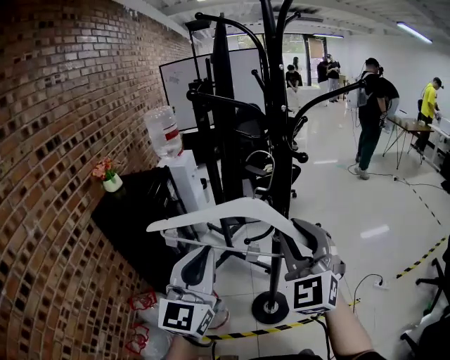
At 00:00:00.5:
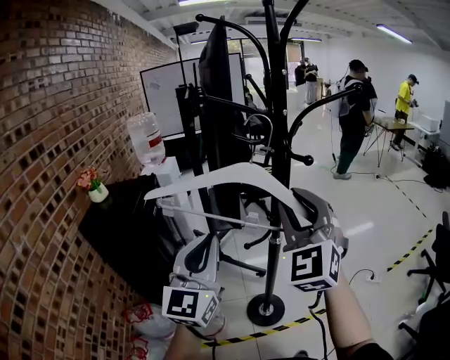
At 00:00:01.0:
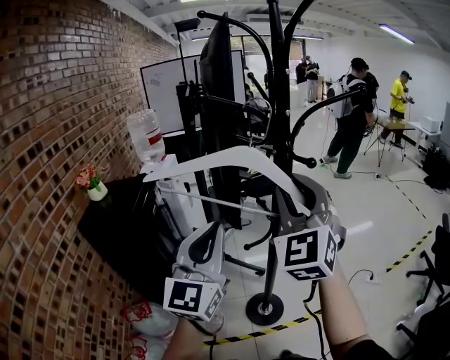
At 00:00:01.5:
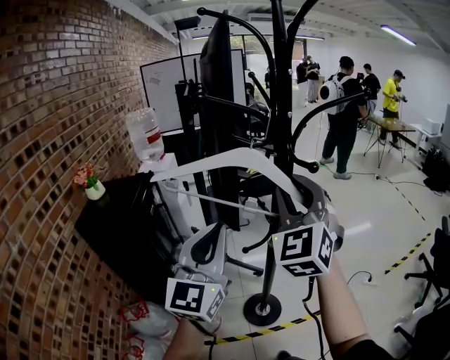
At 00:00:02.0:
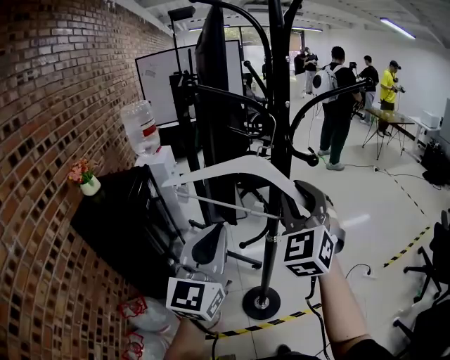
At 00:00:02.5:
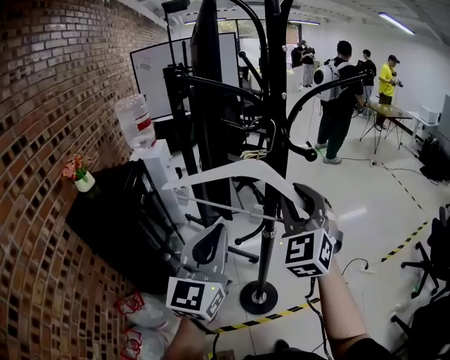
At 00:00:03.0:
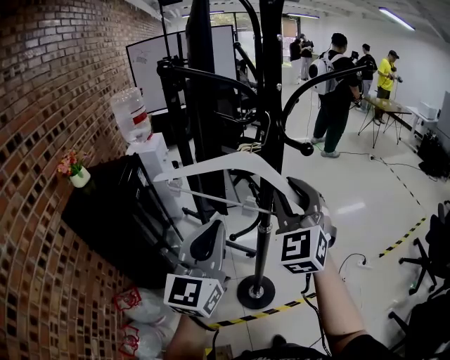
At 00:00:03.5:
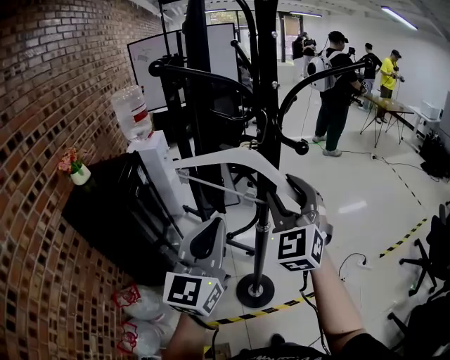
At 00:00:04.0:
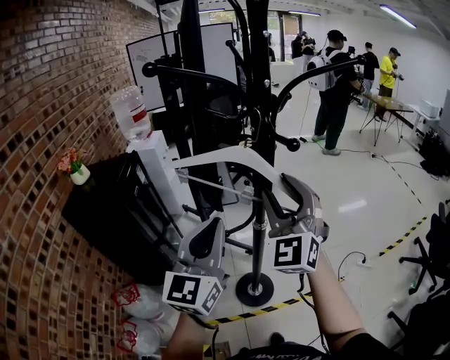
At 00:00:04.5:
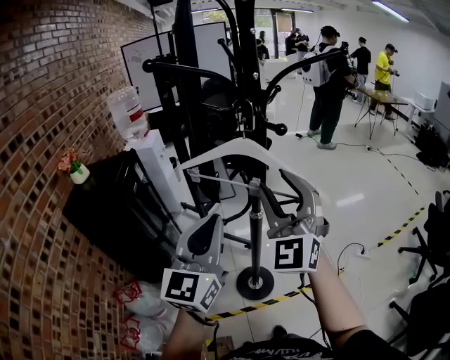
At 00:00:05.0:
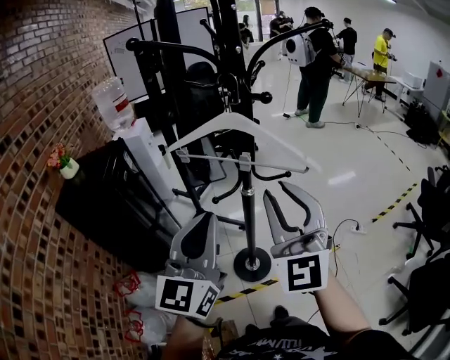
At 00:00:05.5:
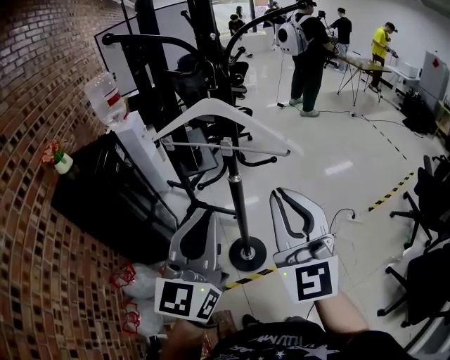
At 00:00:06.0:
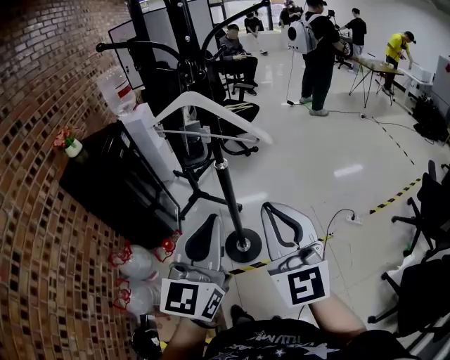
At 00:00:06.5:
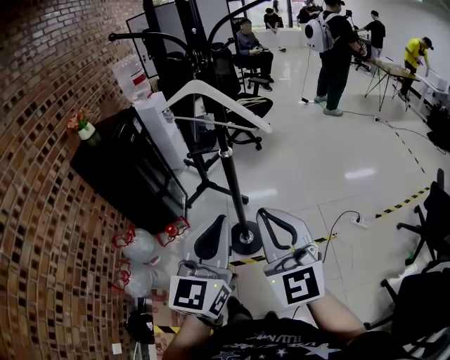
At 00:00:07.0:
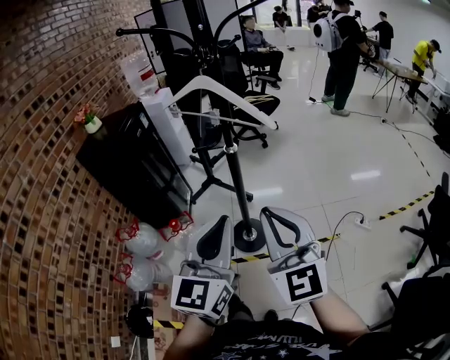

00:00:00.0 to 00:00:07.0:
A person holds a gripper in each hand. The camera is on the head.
00:00:00.0 to 00:00:02.0: The two grippers go approximately 10 cm forward.
00:00:02.0 to 00:00:03.5: The right gripper opens up.
00:00:03.5 to 00:00:05.0: The left gripper heads backward, covering some 10 cm. The right gripper heads backward, covering about 15 cm, and closes its fingers.
00:00:05.0 to 00:00:07.0: The two grippers go roughly 20 cm backward, to the right and downward. The right gripper swivels approximately 30 degrees, and closes.

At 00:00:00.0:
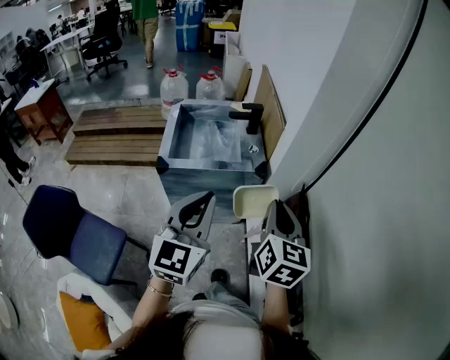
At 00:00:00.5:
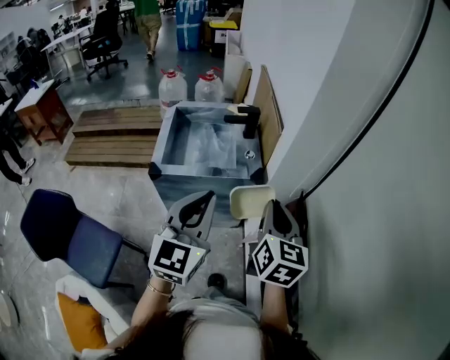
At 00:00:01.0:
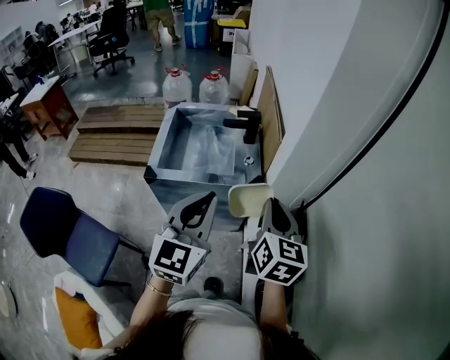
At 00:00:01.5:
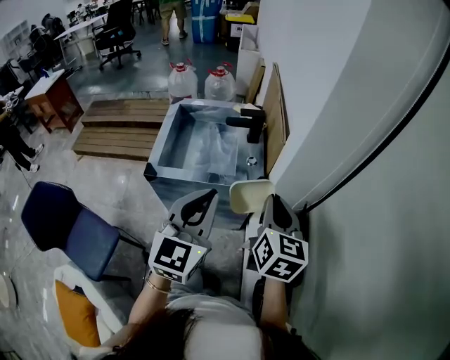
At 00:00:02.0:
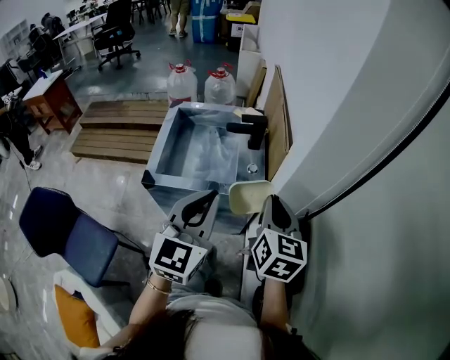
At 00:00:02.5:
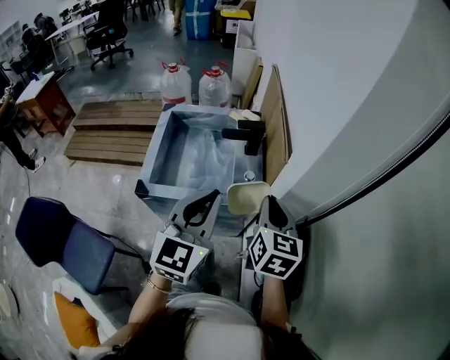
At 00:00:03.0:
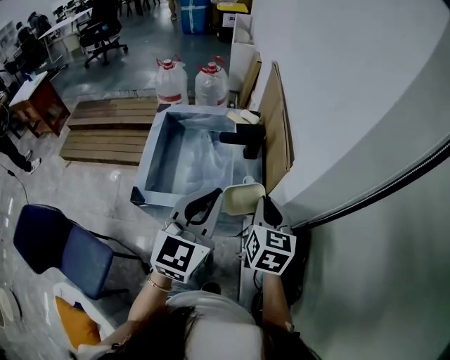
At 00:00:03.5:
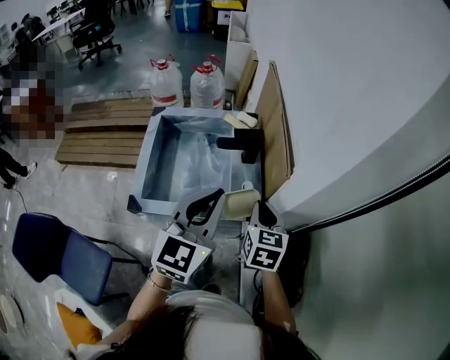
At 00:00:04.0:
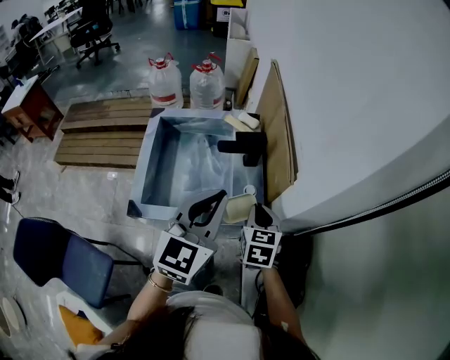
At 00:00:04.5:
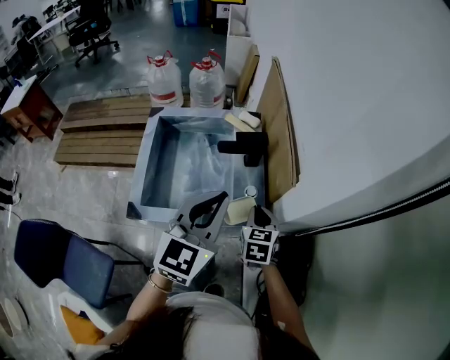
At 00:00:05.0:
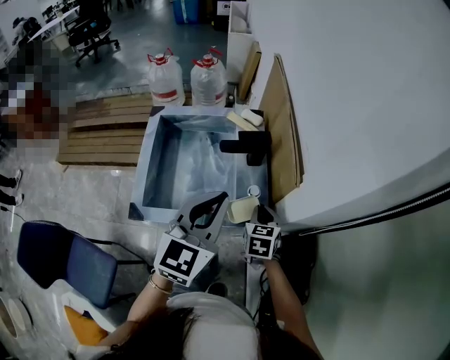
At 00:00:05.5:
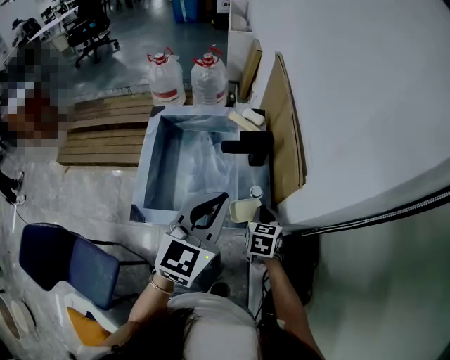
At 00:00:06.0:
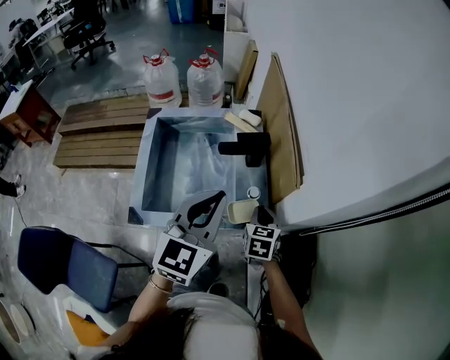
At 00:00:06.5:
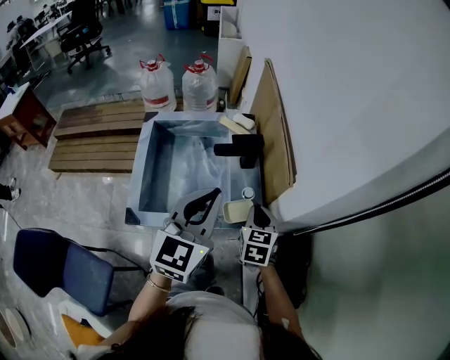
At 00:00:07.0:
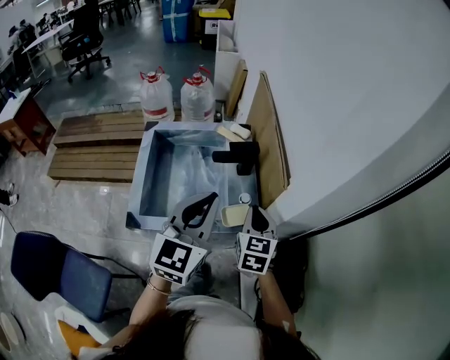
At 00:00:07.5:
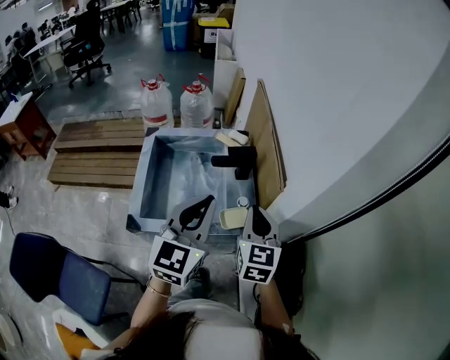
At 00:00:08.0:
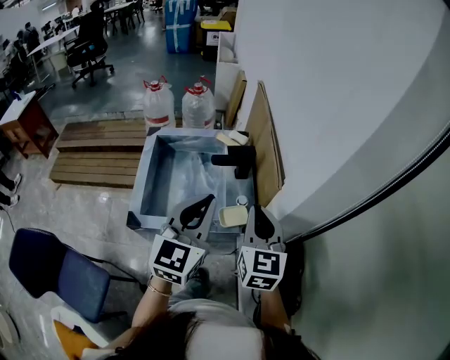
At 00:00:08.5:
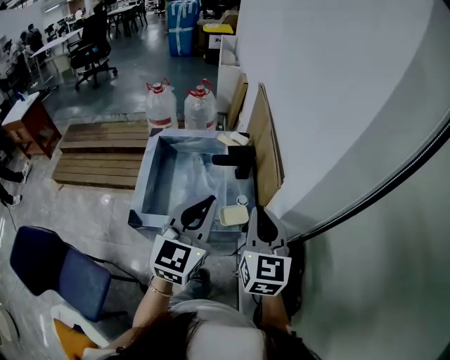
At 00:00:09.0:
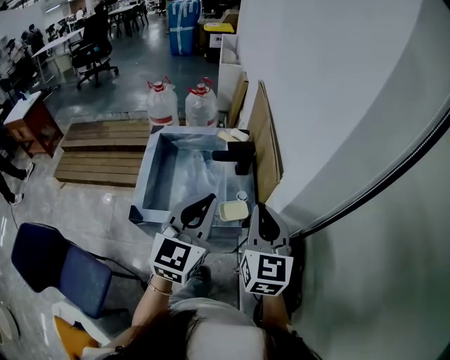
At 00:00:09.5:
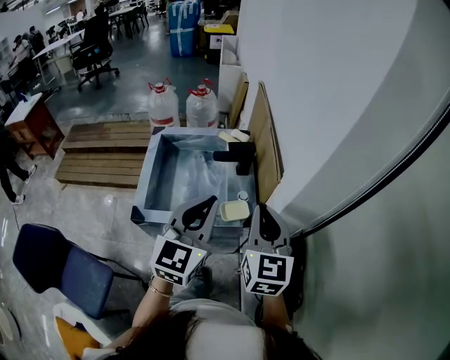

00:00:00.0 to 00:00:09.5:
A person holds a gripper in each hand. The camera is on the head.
00:00:00.0 to 00:00:02.0: The two grippers go approximately 20 cm forward.
00:00:02.0 to 00:00:04.0: The right gripper travels forward and downward by approximately 20 cm, and turns by about 20 degrees. The left gripper goes roughly 15 cm forward.
00:00:04.0 to 00:00:05.5: The right gripper goes approximately 10 cm downward.
00:00:05.5 to 00:00:07.5: The right gripper shifts about 20 cm upward, and swivels approximately 30 degrees; the left gripper ends up approximately 5 cm from where it was.
00:00:07.5 to 00:00:09.5: The left gripper ends up roughly 5 cm from where it was. Meanwhile the right gripper shifts some 10 cm upward and backward.

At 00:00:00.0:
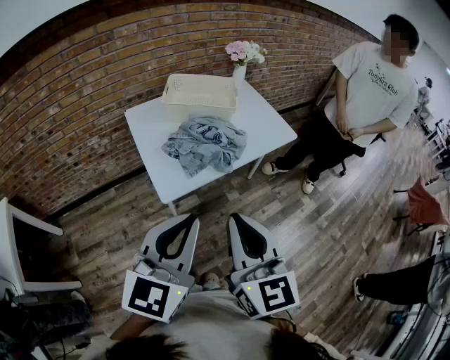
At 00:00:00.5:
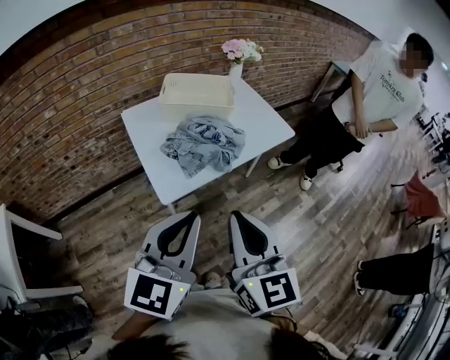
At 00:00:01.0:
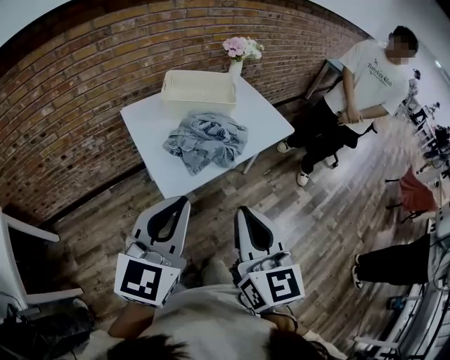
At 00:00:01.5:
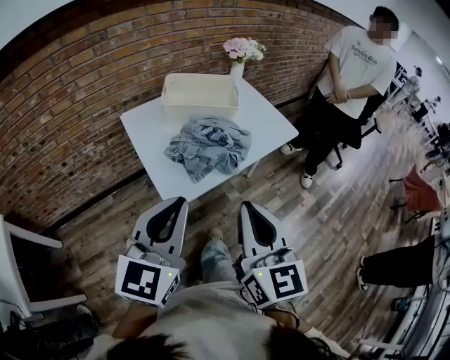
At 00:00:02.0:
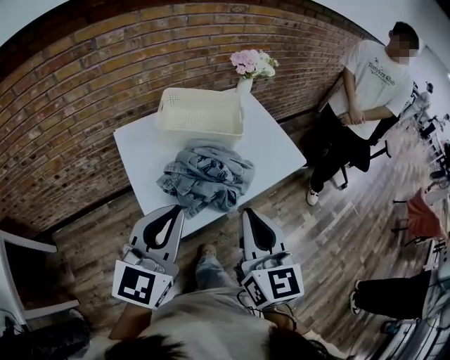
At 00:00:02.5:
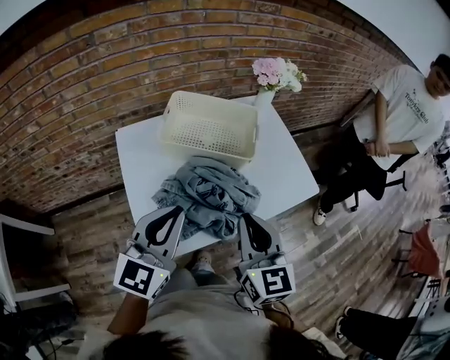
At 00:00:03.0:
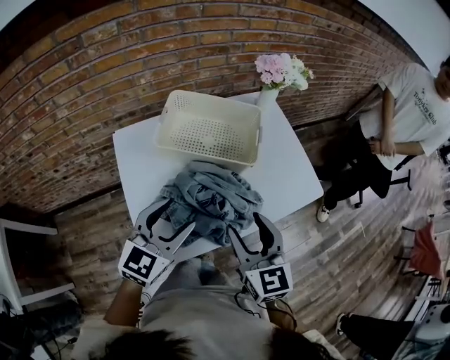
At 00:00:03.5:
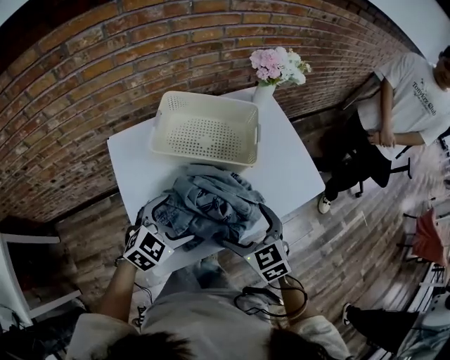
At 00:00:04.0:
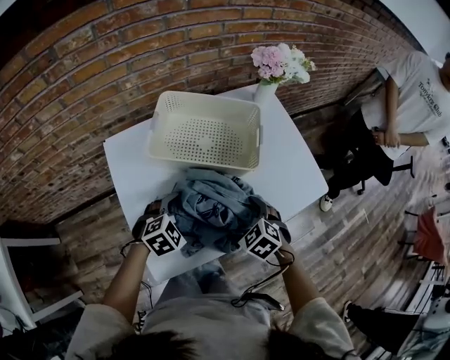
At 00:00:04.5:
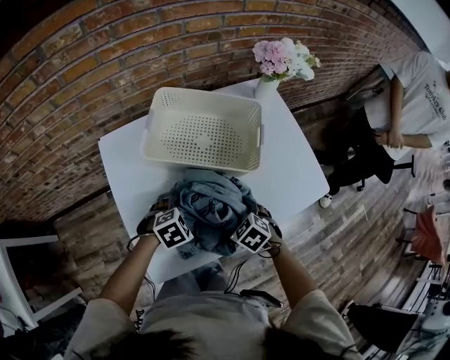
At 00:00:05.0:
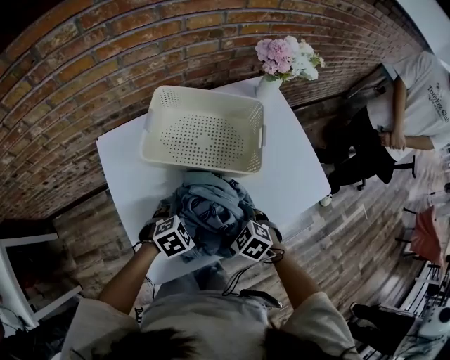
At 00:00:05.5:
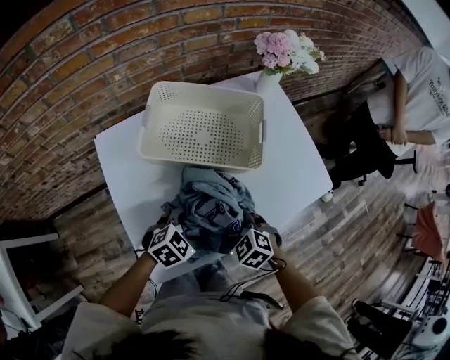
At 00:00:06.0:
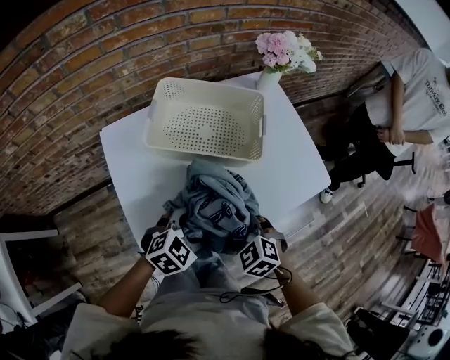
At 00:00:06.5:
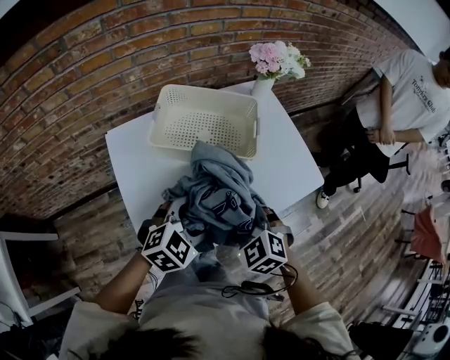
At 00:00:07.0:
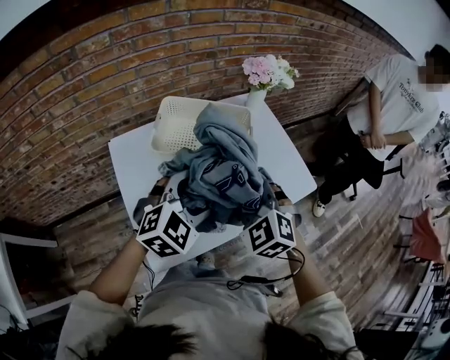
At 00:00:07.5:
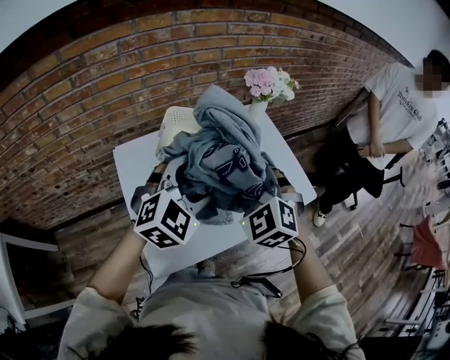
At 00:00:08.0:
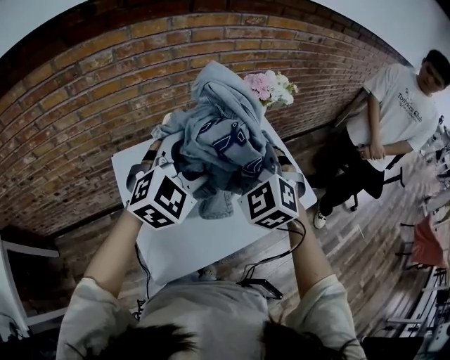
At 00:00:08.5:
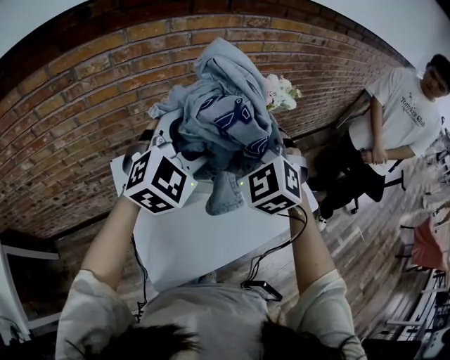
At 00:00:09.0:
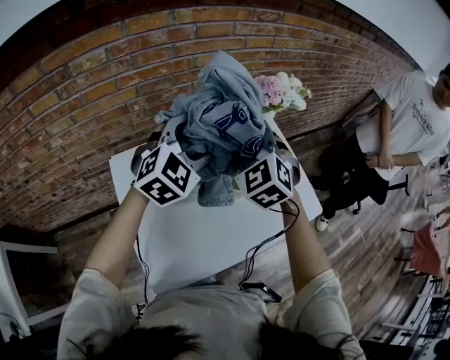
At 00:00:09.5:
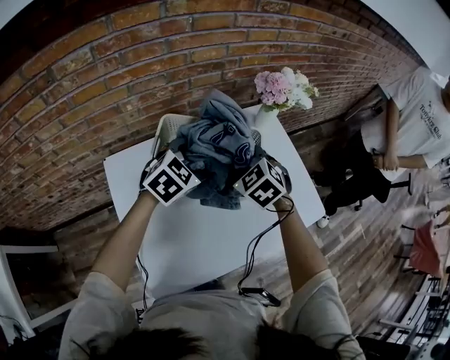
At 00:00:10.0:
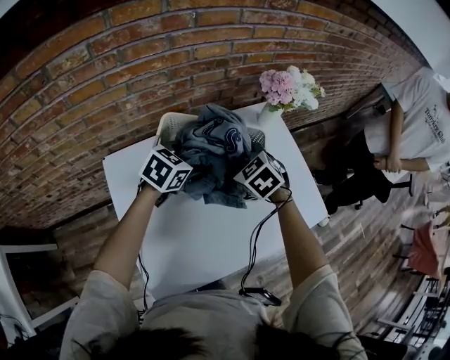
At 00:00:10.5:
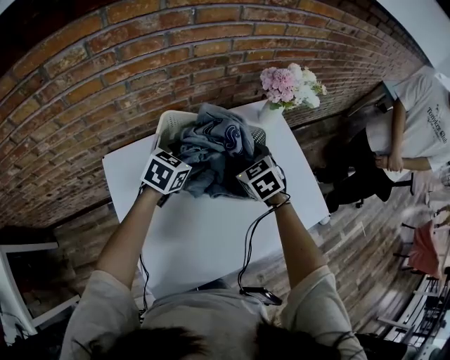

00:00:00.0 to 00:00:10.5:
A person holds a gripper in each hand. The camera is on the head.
00:00:00.0 to 00:00:02.0: The two grippers go some 20 cm forward.
00:00:02.0 to 00:00:04.0: The grippers both shift downward and forward by some 35 cm. The right gripper tips its fingers downward by about 60 degrees, and opens; the left gripper tips its fingers downward by roughly 50 degrees, and opens up.
00:00:04.0 to 00:00:06.5: Both grippers move upward, roughly 10 cm. The right gripper closes up. The left gripper closes up.
00:00:06.5 to 00:00:08.5: Both grippers travel together upward and forward, about 30 cm. The left gripper changes its angle by roughly 30 degrees. The right gripper changes its angle by roughly 30 degrees.
00:00:08.5 to 00:00:10.5: The right gripper is displaced downward by some 25 cm, and swivels roughly 40 degrees. The left gripper is displaced downward and forward by some 30 cm, and twists about 50 degrees counterclockwise, seen from behind.
